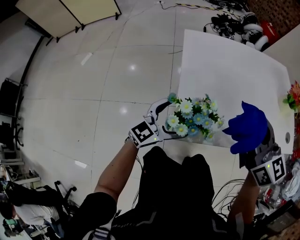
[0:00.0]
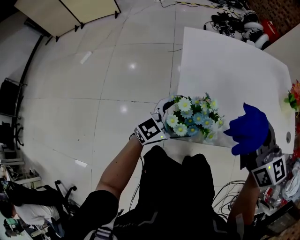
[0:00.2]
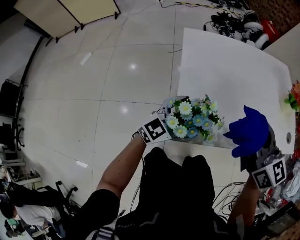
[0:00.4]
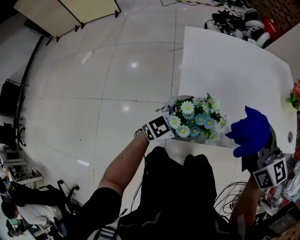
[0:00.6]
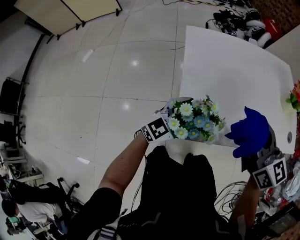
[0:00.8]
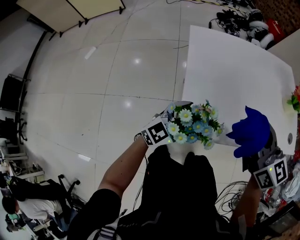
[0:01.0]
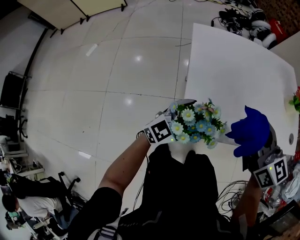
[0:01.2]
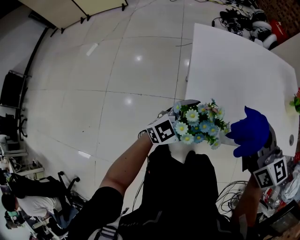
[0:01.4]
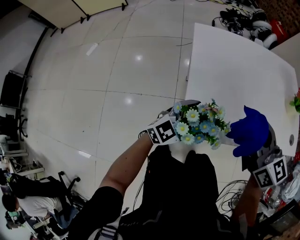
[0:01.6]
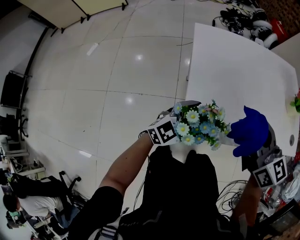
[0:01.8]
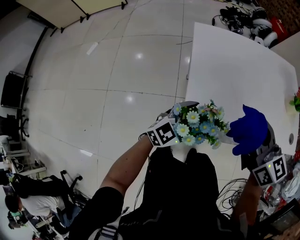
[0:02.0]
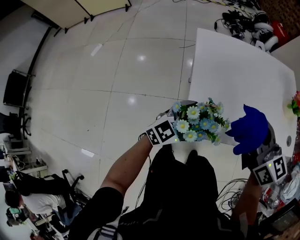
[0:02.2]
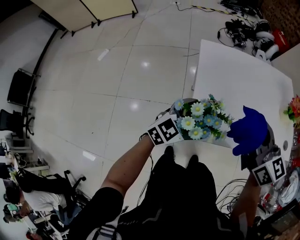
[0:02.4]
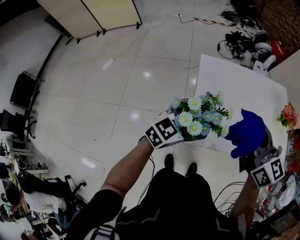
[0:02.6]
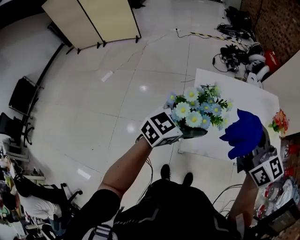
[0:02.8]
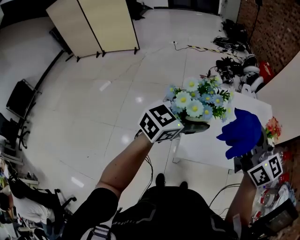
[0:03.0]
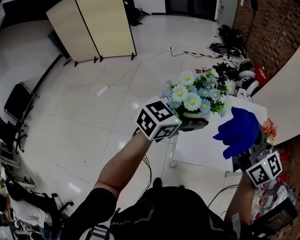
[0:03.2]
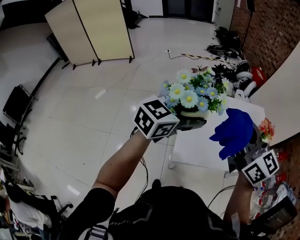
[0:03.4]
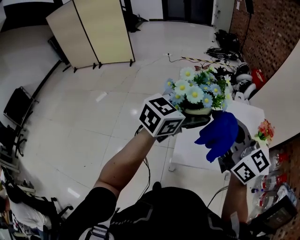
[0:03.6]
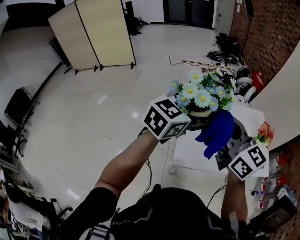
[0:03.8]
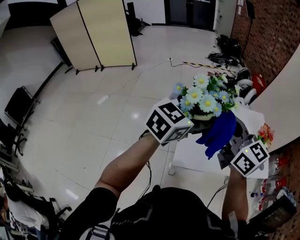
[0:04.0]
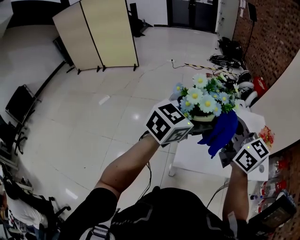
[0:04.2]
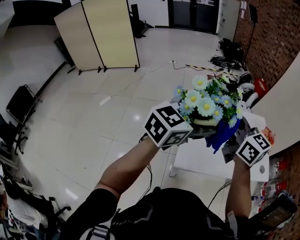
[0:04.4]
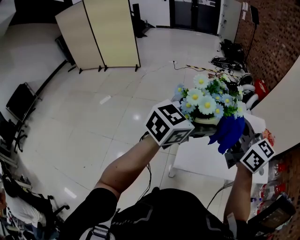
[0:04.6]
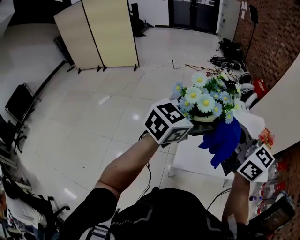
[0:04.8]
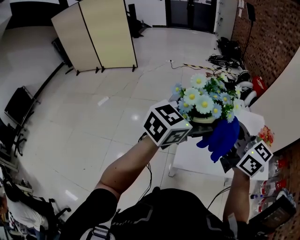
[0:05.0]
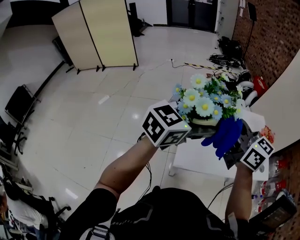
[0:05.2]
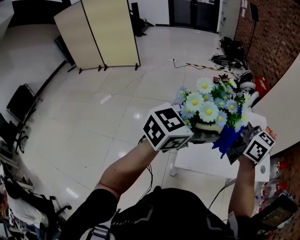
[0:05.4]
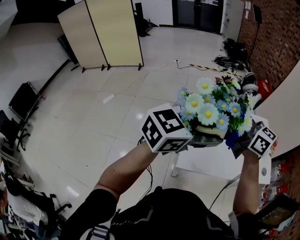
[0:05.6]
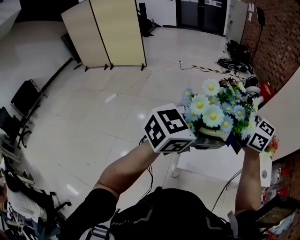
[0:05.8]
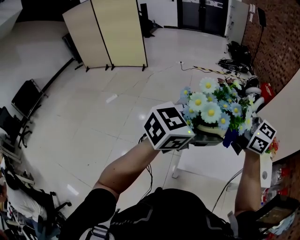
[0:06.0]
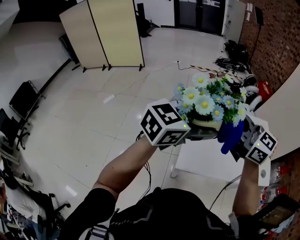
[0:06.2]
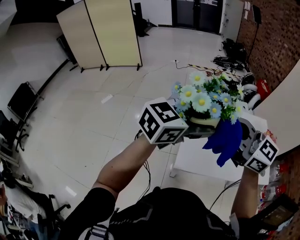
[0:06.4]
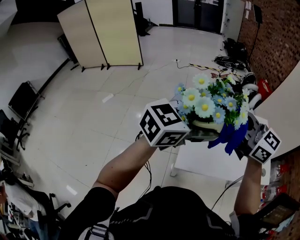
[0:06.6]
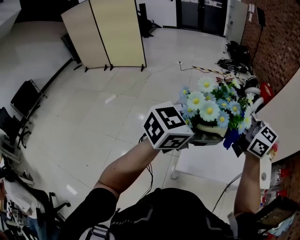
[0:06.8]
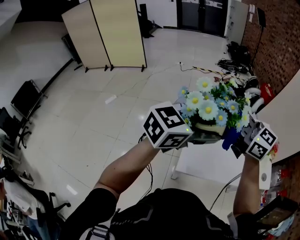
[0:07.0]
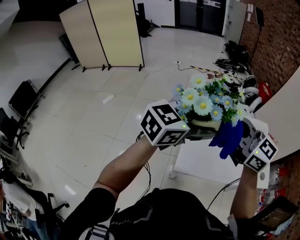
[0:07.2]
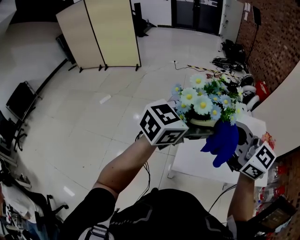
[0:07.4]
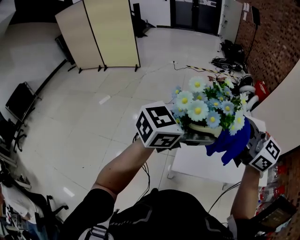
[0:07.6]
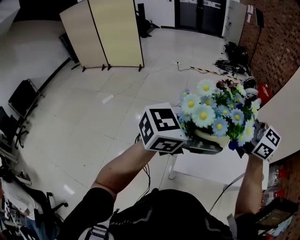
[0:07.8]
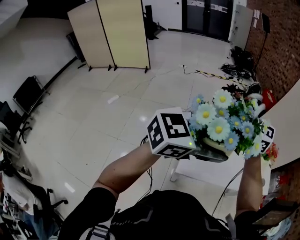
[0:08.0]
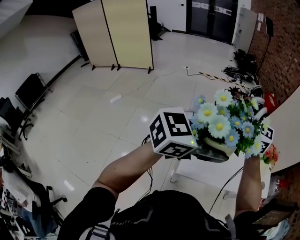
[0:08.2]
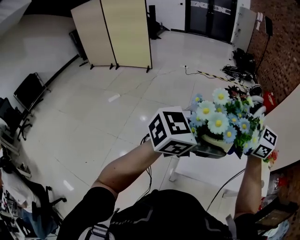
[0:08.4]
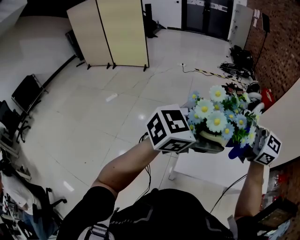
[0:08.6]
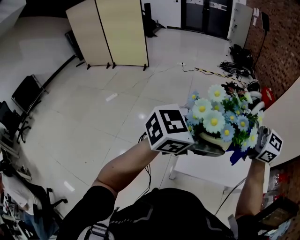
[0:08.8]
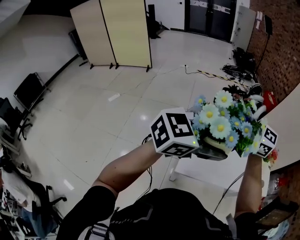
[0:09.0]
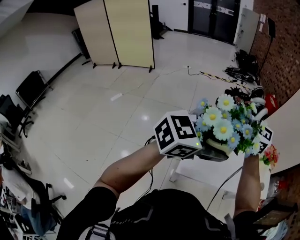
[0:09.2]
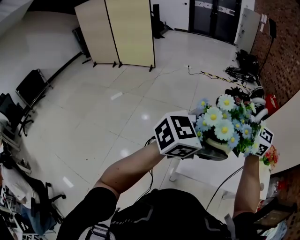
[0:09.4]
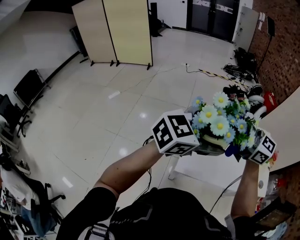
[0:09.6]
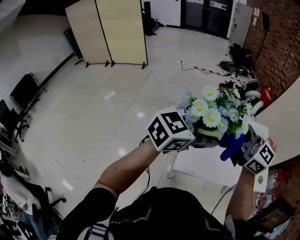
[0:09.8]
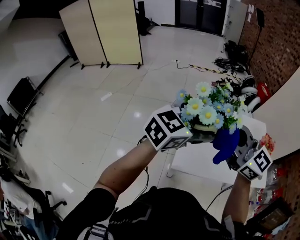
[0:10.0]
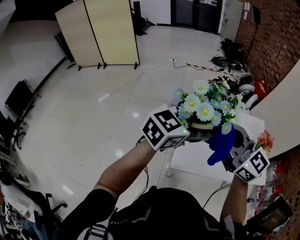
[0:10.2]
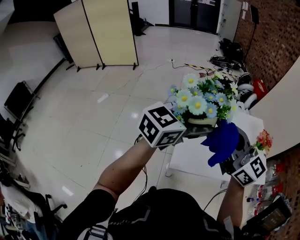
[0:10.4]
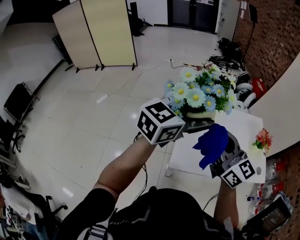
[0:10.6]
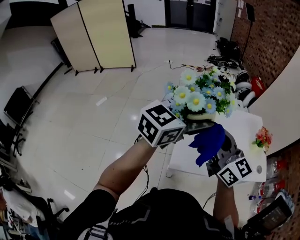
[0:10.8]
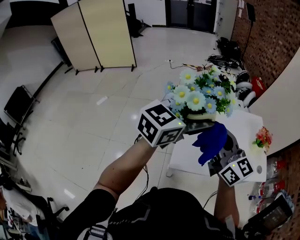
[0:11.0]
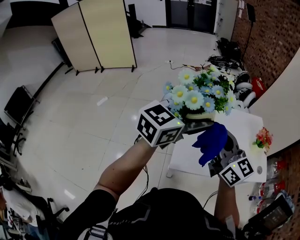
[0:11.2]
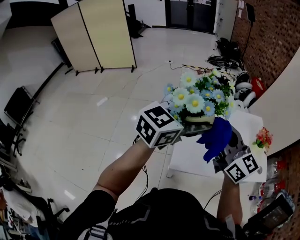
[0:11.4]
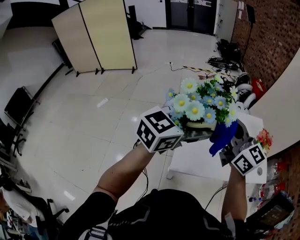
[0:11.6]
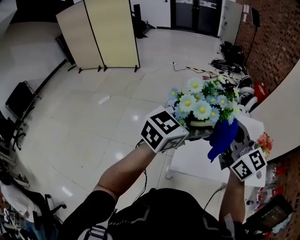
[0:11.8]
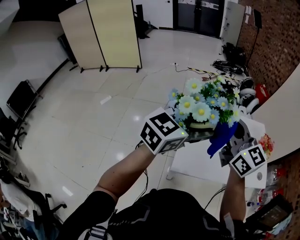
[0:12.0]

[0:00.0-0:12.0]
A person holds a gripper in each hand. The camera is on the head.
0:00.0 to 0:01.6: The left gripper heads to the right, covering about 5 cm.
0:01.6 to 0:03.0: Both grippers move upward, about 30 cm.
0:03.0 to 0:04.4: The left gripper shifts about 10 cm upward; the right gripper ends up roughly 5 cm from where it was.
0:04.4 to 0:06.0: The right gripper reaches roughly 5 cm backward, then returns, and changes its angle by approximately 20 degrees.
0:06.0 to 0:07.6: The right gripper moves forward and backward over roughly 10 cm, changing direction 2 times.
0:07.6 to 0:09.0: The right gripper shifts by approximately 5 cm.
0:09.0 to 0:10.4: The right gripper shifts by about 10 cm, and changes its angle by roughly 30 degrees. The left gripper moves about 5 cm.
0:10.4 to 0:12.0: There are only small adjustments of the grippers.

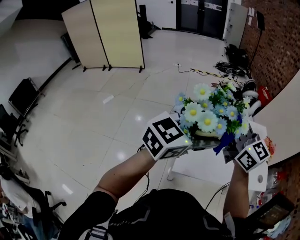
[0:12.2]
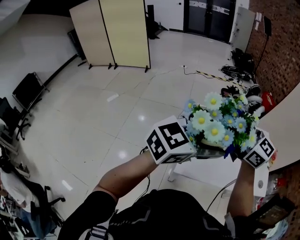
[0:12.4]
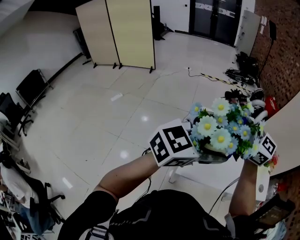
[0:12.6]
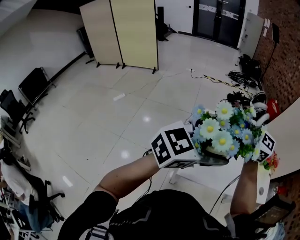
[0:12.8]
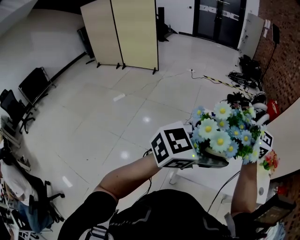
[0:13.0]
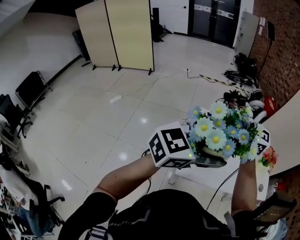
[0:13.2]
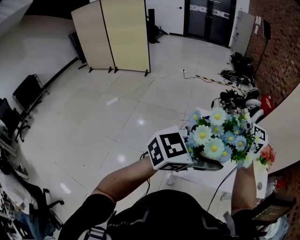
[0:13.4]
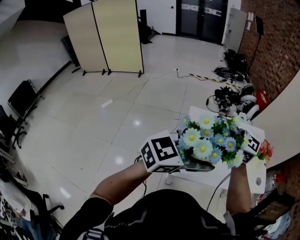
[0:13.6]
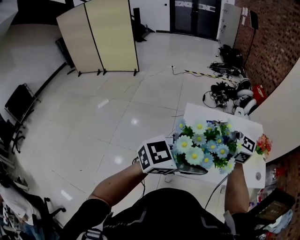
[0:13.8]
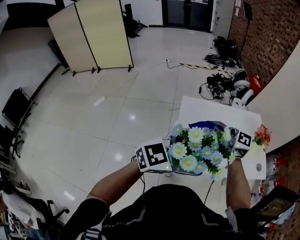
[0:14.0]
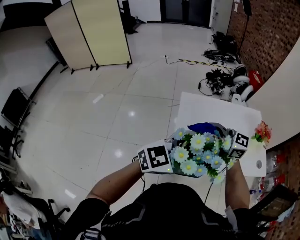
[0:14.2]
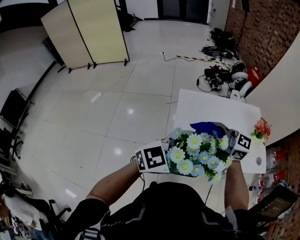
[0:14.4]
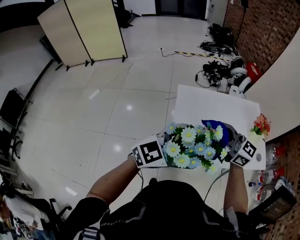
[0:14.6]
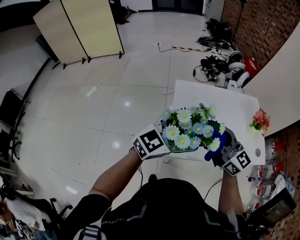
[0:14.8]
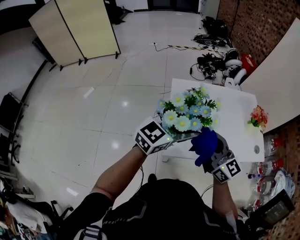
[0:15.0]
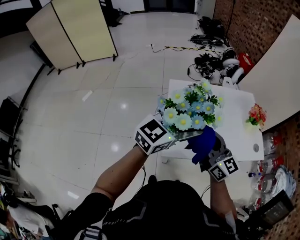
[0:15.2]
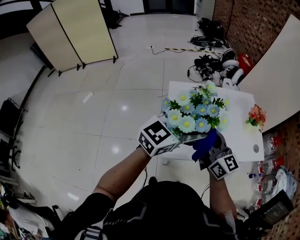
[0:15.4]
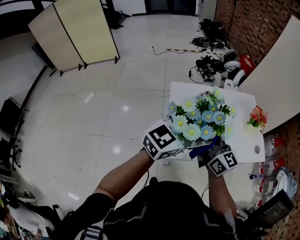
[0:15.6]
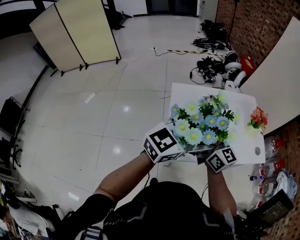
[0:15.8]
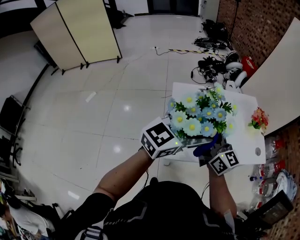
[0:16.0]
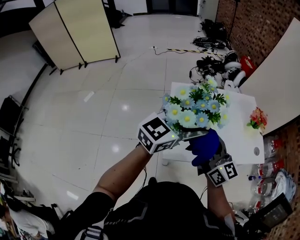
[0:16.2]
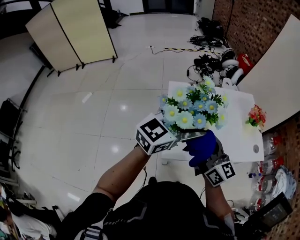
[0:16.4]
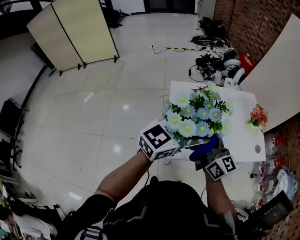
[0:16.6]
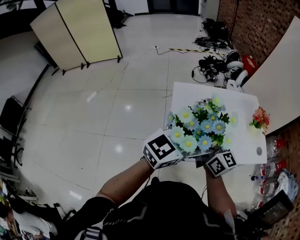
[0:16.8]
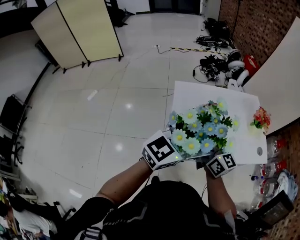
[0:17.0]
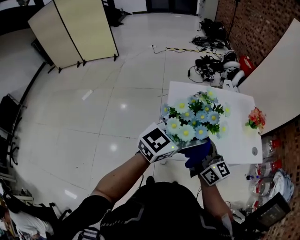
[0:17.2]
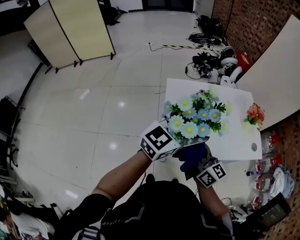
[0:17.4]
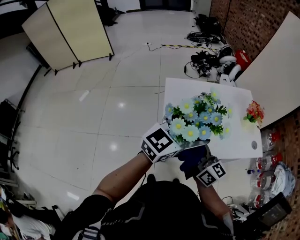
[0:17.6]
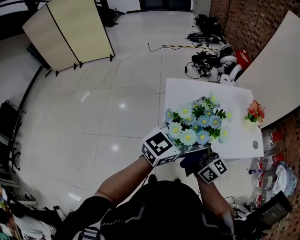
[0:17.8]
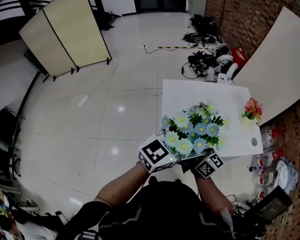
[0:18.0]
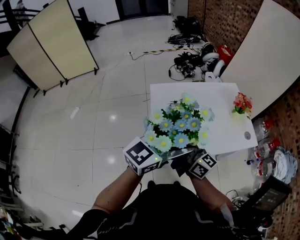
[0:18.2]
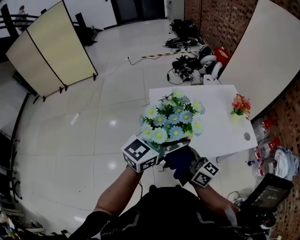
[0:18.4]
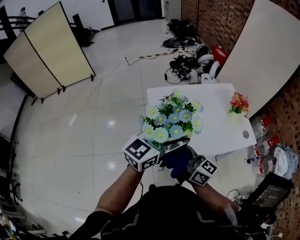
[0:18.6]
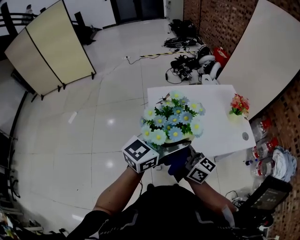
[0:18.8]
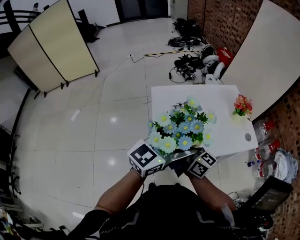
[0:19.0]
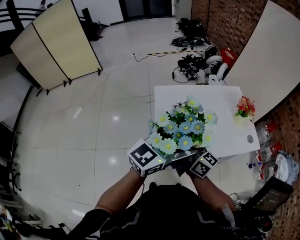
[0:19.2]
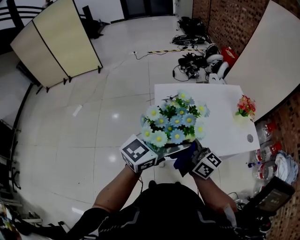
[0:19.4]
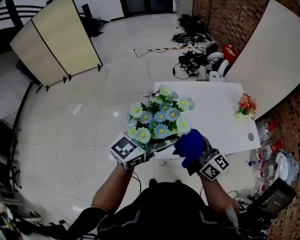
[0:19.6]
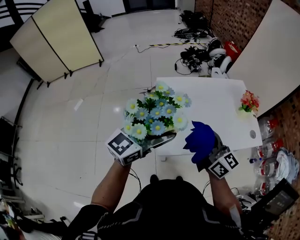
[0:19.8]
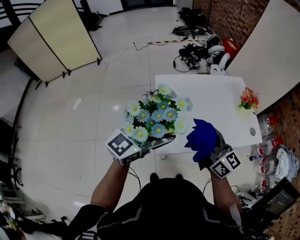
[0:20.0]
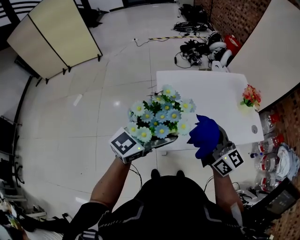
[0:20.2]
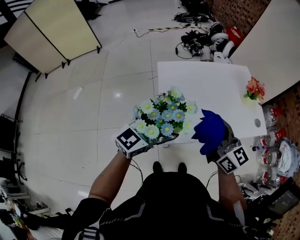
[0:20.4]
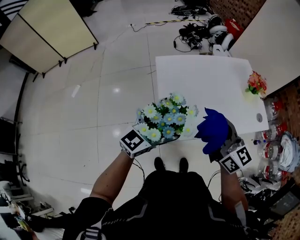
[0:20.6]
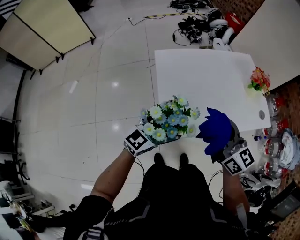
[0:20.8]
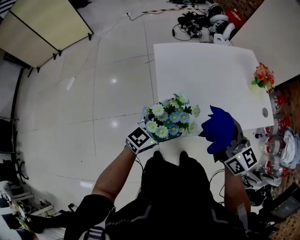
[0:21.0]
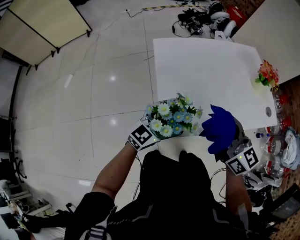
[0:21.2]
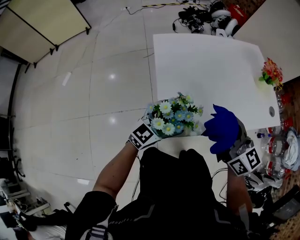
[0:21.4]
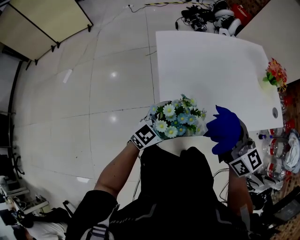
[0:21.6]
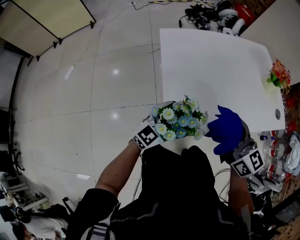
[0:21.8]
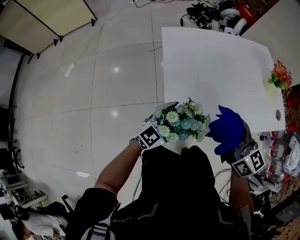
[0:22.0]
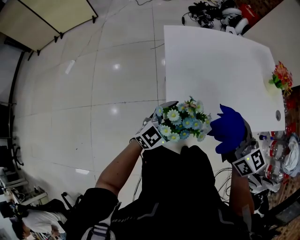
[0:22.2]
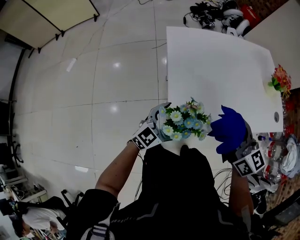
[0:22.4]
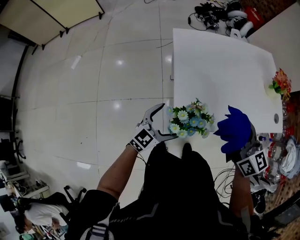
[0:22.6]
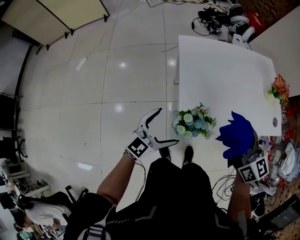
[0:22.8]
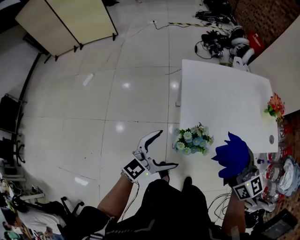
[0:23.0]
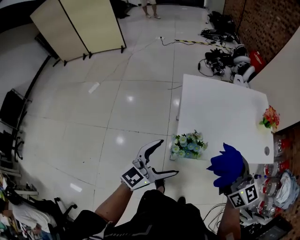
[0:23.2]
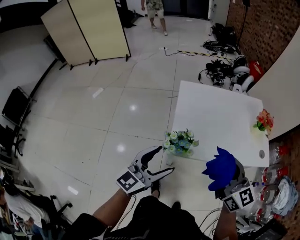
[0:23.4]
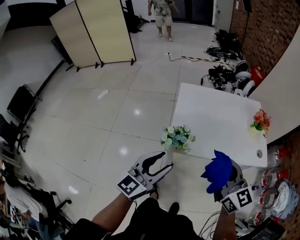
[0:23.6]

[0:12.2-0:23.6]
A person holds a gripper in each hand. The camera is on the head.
0:12.2 to 0:13.6: The right gripper shifts by about 5 cm, and changes its angle by roughly 30 degrees. The left gripper changes place by approximately 5 cm.
0:13.6 to 0:15.0: The grippers both shift downward by about 10 cm. The right gripper turns by approximately 40 degrees.
0:16.4 to 0:17.8: The grippers move only a little.
0:17.8 to 0:19.4: The grippers make only small movements.
0:19.4 to 0:20.8: The right gripper heads to the right, covering approximately 5 cm, and rotates roughly 20 degrees; the left gripper moves downward, roughly 20 cm.
0:20.8 to 0:22.2: The left gripper heads downward, covering approximately 20 cm; the right gripper travels downward by about 10 cm.
0:22.2 to 0:23.6: The left gripper shifts approximately 35 cm upward and backward, swivels roughly 40 degrees, and closes its fingers. Meanwhile the right gripper moves upward, backward and to the right, some 25 cm.
